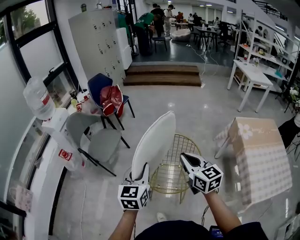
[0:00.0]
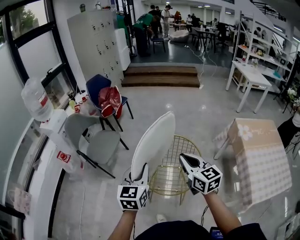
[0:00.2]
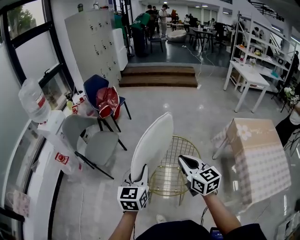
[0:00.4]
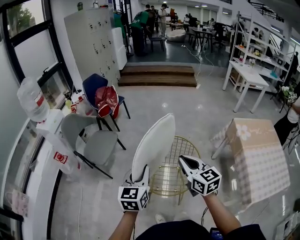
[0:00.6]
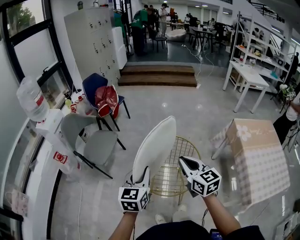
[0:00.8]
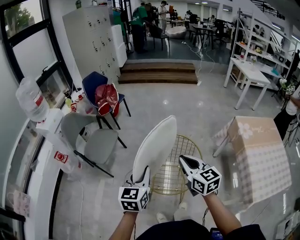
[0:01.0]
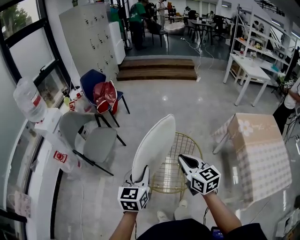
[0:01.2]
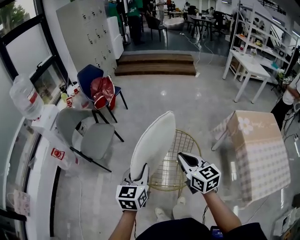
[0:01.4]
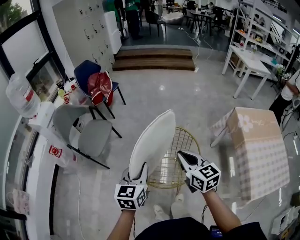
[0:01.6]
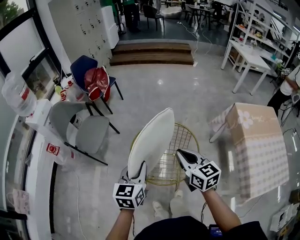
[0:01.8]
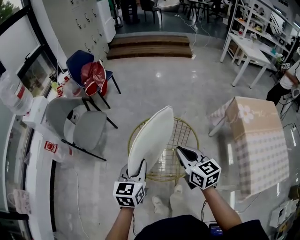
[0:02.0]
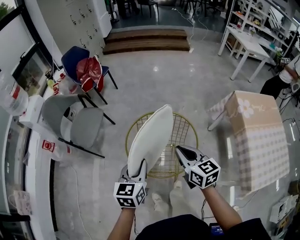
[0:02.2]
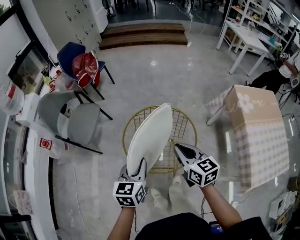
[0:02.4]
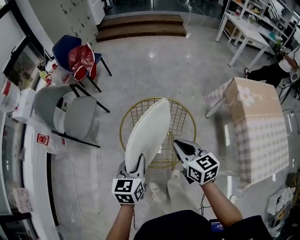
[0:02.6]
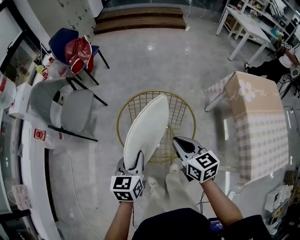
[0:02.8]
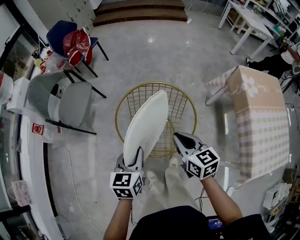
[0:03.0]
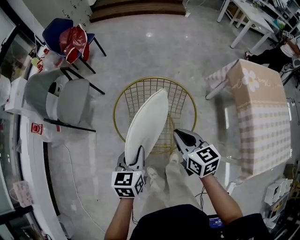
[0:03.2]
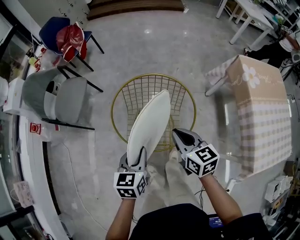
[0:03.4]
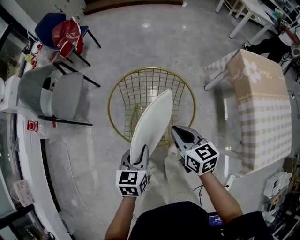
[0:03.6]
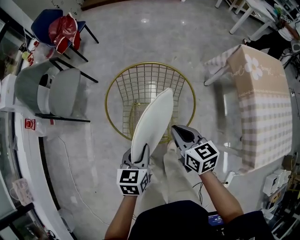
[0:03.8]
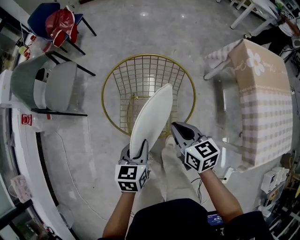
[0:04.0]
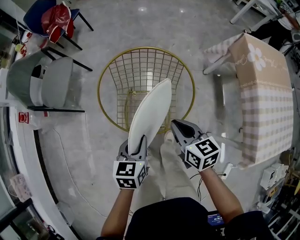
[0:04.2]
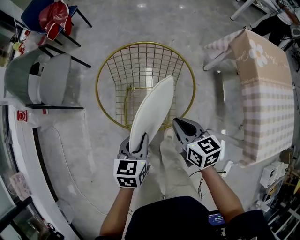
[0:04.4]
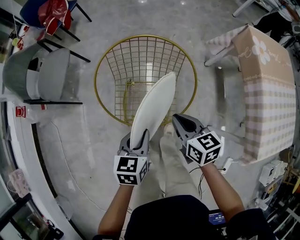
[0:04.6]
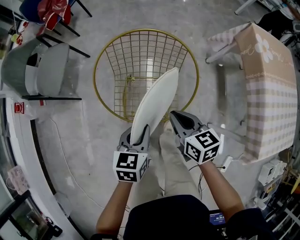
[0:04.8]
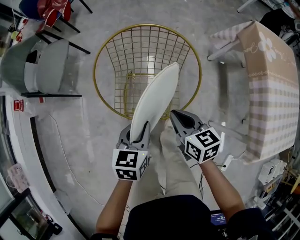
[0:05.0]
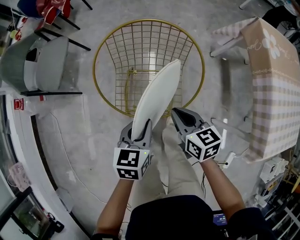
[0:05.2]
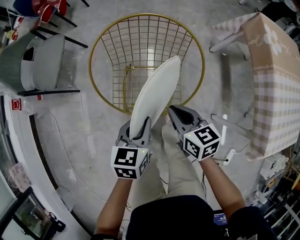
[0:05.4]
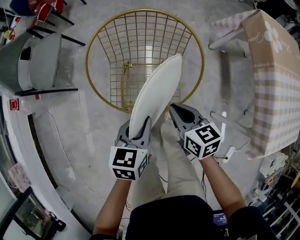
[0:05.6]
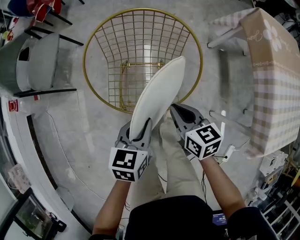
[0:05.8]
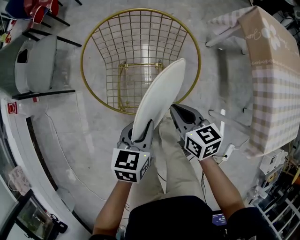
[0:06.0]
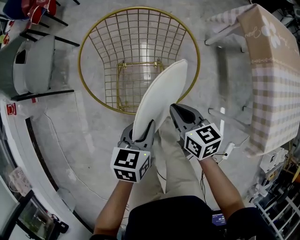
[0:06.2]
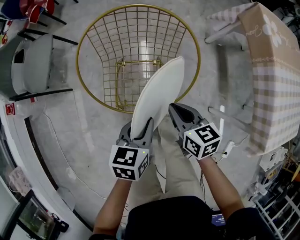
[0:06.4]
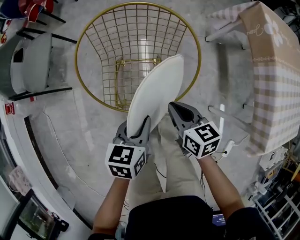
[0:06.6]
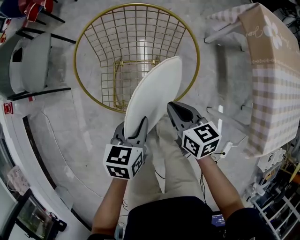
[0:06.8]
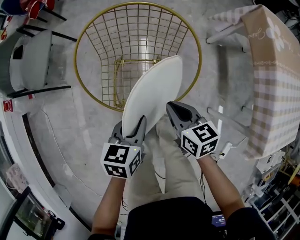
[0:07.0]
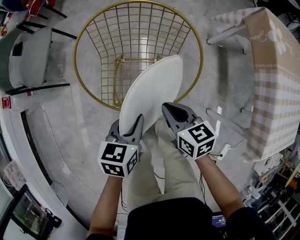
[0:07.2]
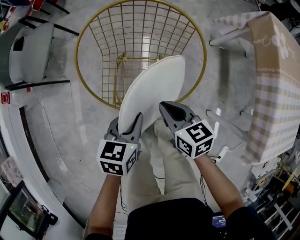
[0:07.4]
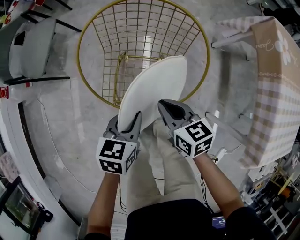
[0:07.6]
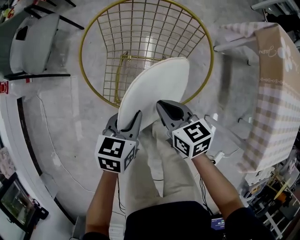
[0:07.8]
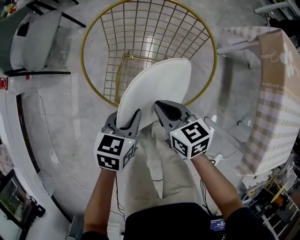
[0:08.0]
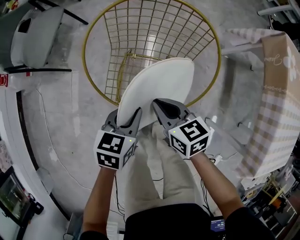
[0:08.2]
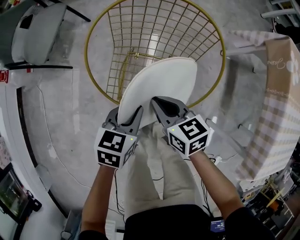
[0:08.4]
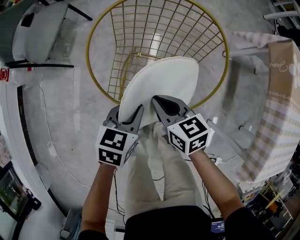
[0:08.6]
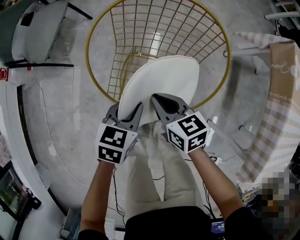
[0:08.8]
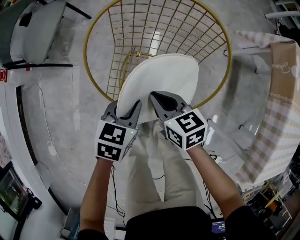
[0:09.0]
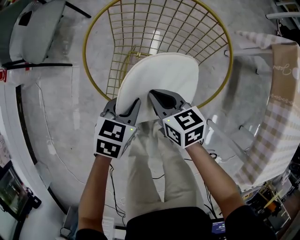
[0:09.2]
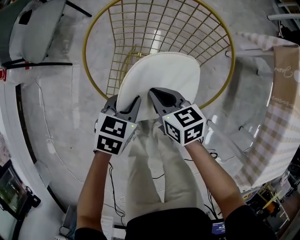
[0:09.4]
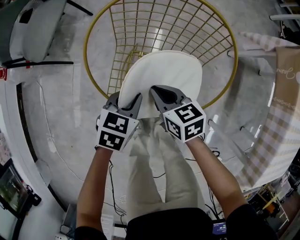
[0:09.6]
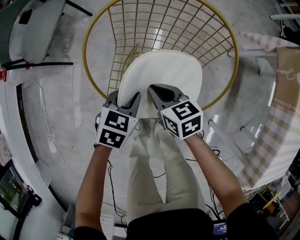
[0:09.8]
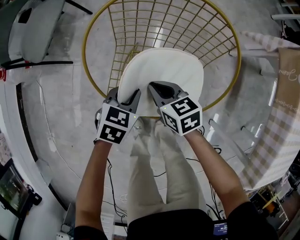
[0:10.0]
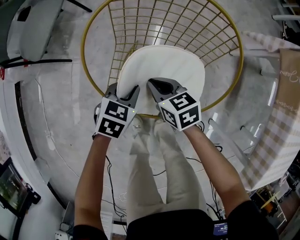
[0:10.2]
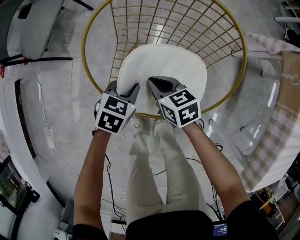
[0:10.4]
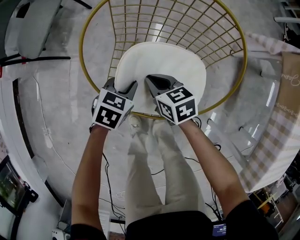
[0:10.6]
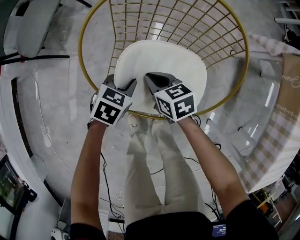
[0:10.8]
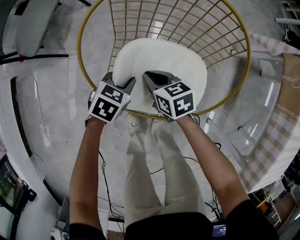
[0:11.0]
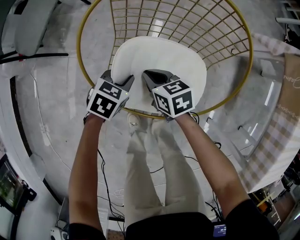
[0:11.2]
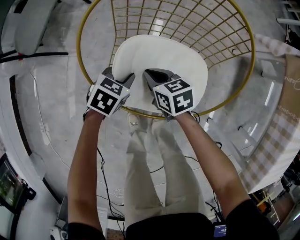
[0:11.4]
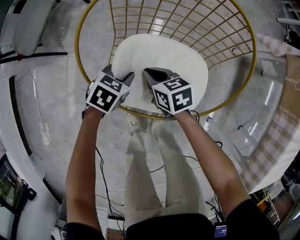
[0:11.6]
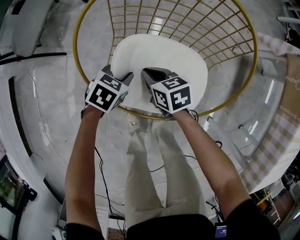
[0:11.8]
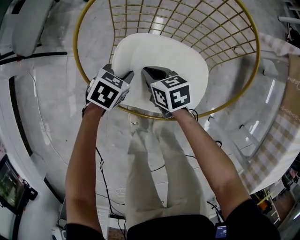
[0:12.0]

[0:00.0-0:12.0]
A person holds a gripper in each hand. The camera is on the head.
0:00.0 to 0:01.6: Both grippers travel together downward, roughly 5 cm.
0:01.6 to 0:03.0: Both grippers travel together downward, about 15 cm.
0:03.0 to 0:04.4: The right gripper moves downward, roughly 10 cm. The left gripper is displaced downward and to the right by some 15 cm.
0:04.4 to 0:06.0: The left gripper is displaced downward by roughly 5 cm; the right gripper goes approximately 10 cm downward.
0:06.0 to 0:07.6: The left gripper ends up some 5 cm from where it was; the right gripper shifts by roughly 5 cm.
0:07.6 to 0:09.0: The left gripper moves downward, roughly 5 cm, while the right gripper is displaced to the left by some 5 cm.
0:09.0 to 0:10.4: The right gripper heads downward, covering some 10 cm; the left gripper heads downward and forward, covering some 10 cm.
0:10.4 to 0:12.0: The two grippers go roughly 5 cm downward.

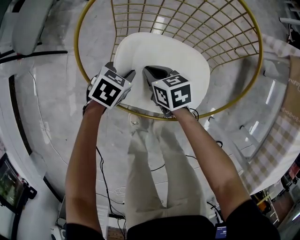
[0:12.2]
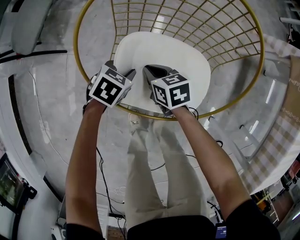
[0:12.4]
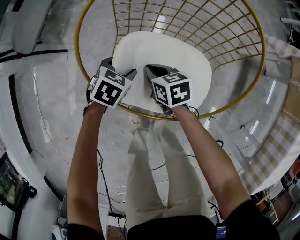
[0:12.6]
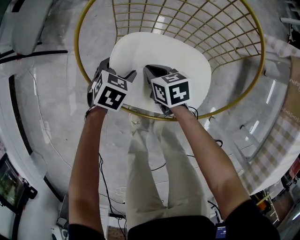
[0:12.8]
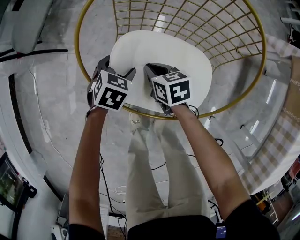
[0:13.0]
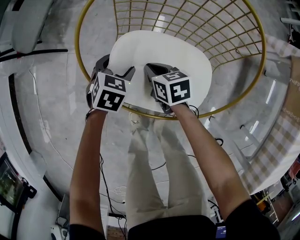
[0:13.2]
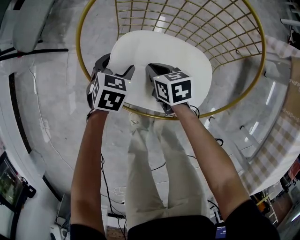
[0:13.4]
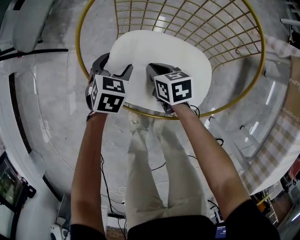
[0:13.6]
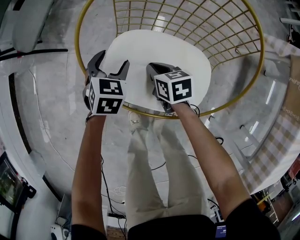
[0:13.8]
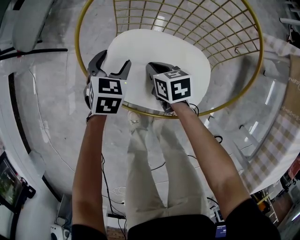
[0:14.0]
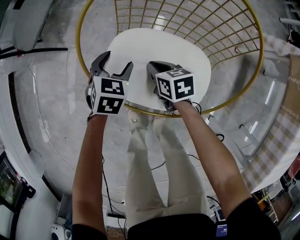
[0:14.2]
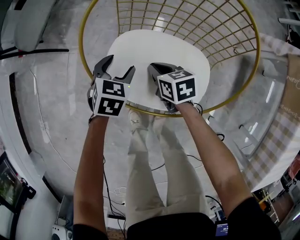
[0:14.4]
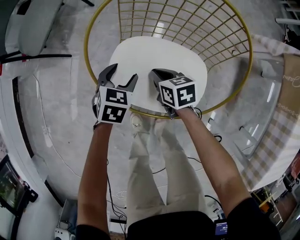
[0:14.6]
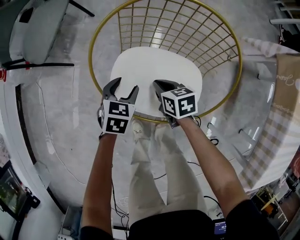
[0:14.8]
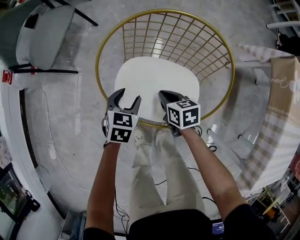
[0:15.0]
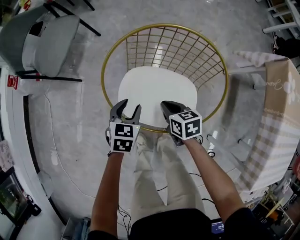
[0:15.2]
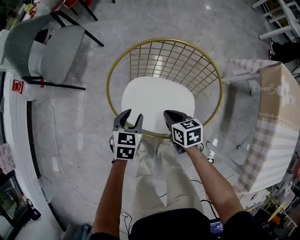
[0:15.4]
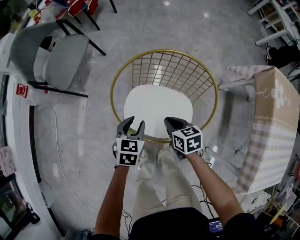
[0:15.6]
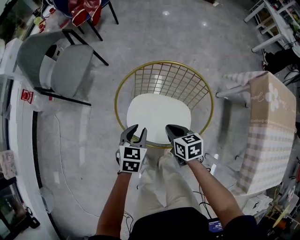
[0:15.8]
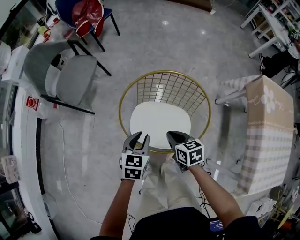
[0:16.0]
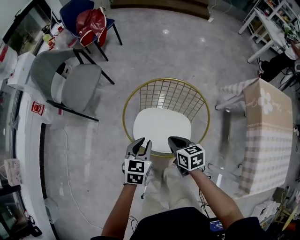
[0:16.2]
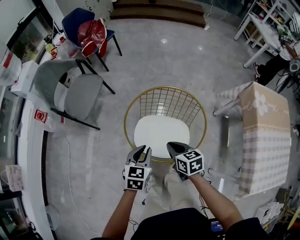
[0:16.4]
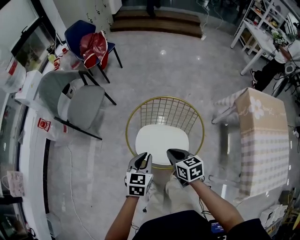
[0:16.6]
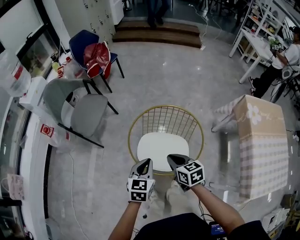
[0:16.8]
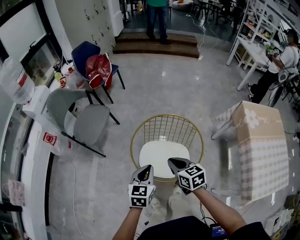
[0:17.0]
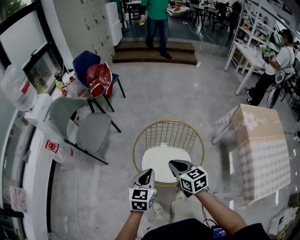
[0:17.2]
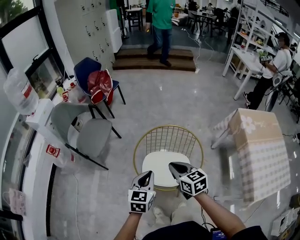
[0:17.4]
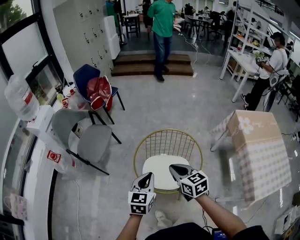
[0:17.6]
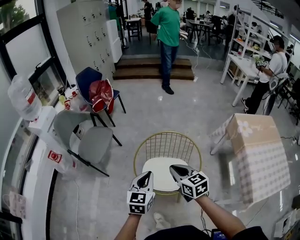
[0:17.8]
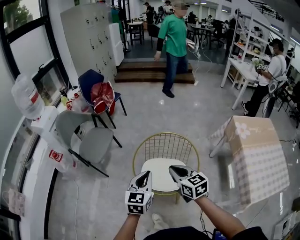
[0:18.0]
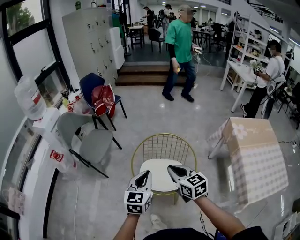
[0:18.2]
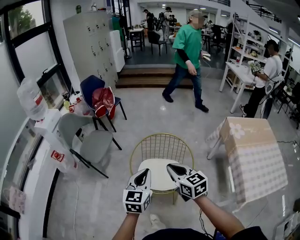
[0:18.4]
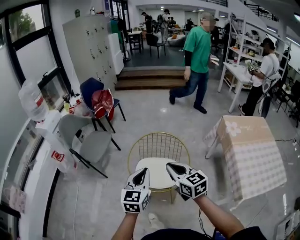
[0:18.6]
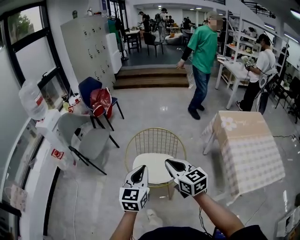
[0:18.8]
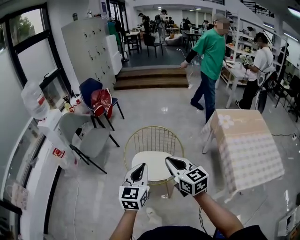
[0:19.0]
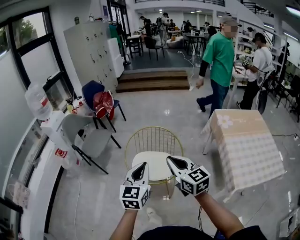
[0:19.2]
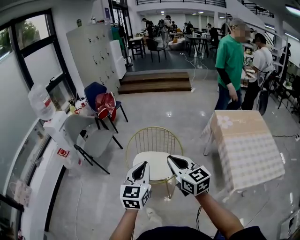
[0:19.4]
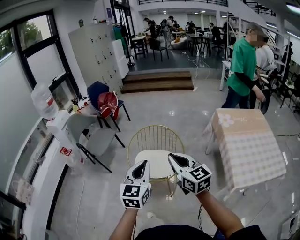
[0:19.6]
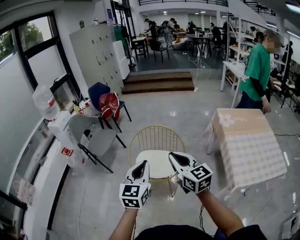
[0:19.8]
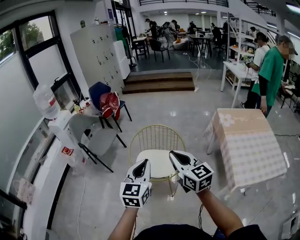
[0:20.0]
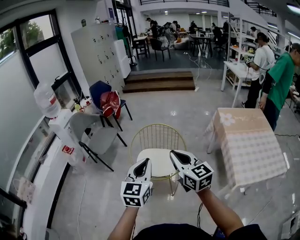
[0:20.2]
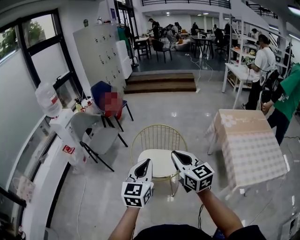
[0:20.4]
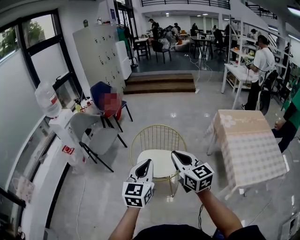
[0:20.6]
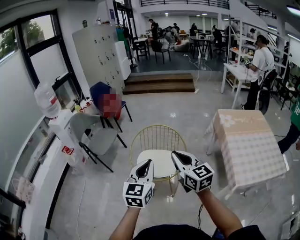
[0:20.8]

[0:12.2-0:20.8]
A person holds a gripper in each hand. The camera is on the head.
0:12.2 to 0:13.6: The left gripper shifts by approximately 5 cm, changes its angle by some 20 degrees, and opens up.
0:13.6 to 0:15.0: The left gripper moves upward and backward, approximately 10 cm, while the right gripper moves upward, roughly 10 cm.
0:15.0 to 0:16.6: Both grippers travel together upward, some 25 cm. The left gripper closes its fingers.
0:16.6 to 0:18.0: The two grippers go about 15 cm upward. The right gripper turns by about 20 degrees.
0:18.0 to 0:19.4: The right gripper moves backward, upward and to the right, approximately 25 cm. Meanwhile the left gripper travels backward, to the right and upward by some 25 cm.
0:19.4 to 0:20.8: The grippers move only a little.

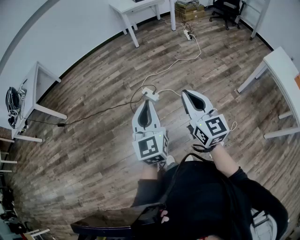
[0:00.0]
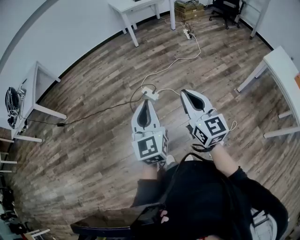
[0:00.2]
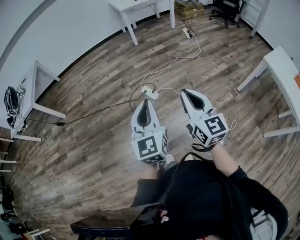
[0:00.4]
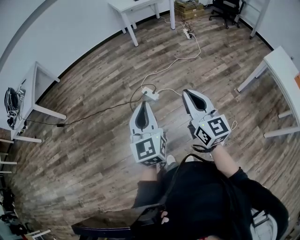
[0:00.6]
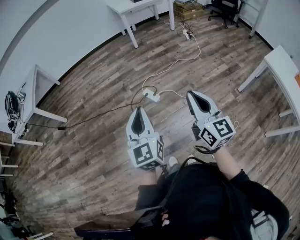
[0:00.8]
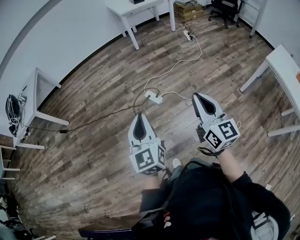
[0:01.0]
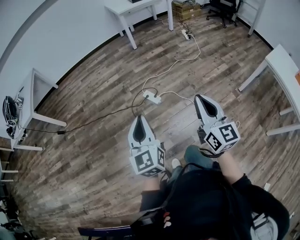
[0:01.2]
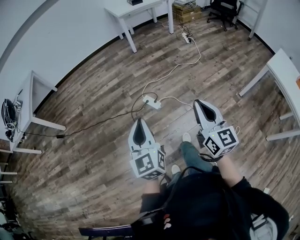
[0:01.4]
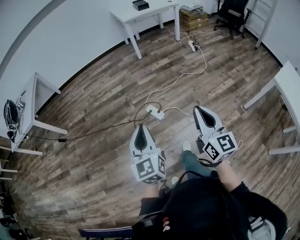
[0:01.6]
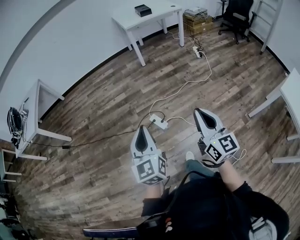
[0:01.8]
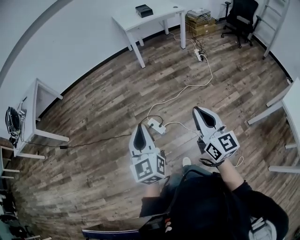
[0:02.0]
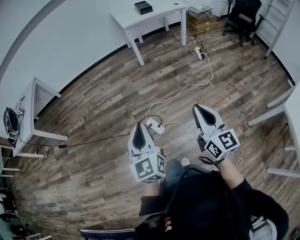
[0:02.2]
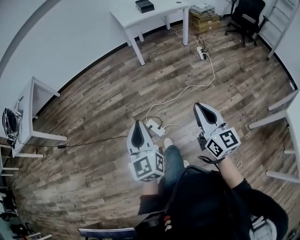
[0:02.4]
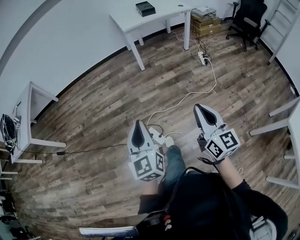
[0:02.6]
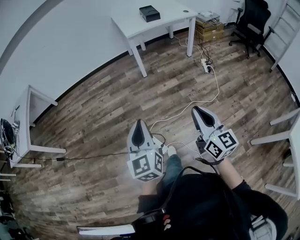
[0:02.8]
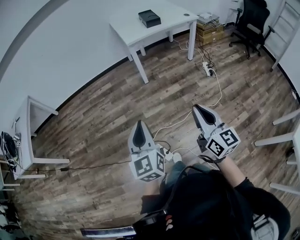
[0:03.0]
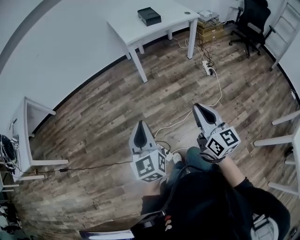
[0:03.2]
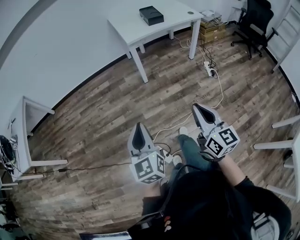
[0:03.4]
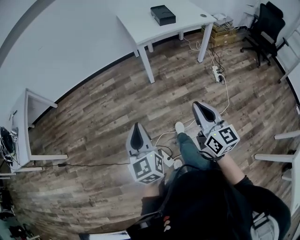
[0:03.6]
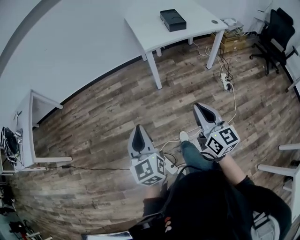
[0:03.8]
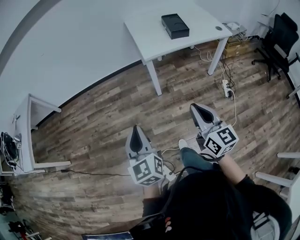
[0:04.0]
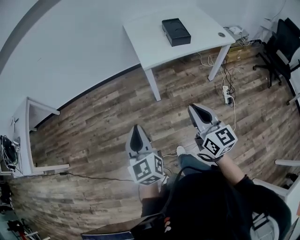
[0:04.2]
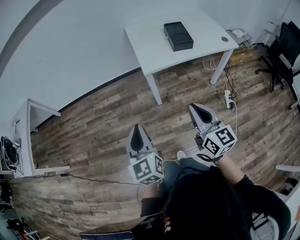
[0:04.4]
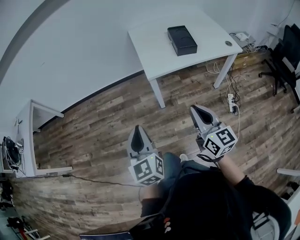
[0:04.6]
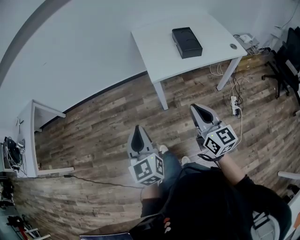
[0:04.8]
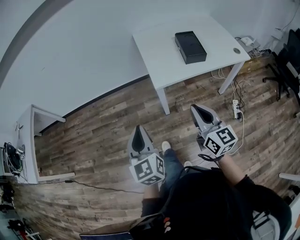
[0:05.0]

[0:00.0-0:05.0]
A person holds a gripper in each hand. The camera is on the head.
0:00.0 to 0:01.6: The left gripper shifts about 15 cm forward and downward. The right gripper travels forward by some 15 cm.
0:01.6 to 0:03.4: Both grippers are carried forward, about 60 cm.
0:03.4 to 0:05.0: The pair of grippers is taken forward, some 50 cm.
